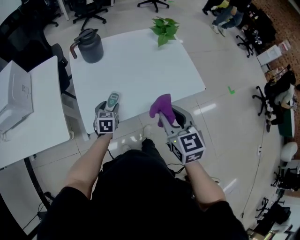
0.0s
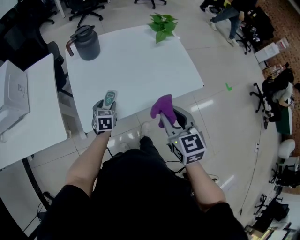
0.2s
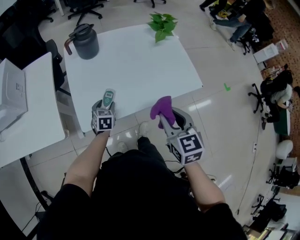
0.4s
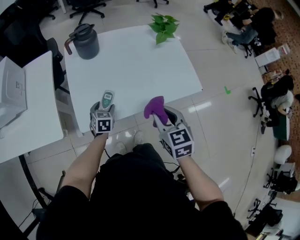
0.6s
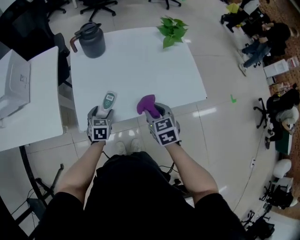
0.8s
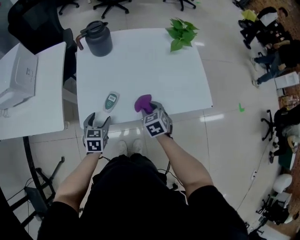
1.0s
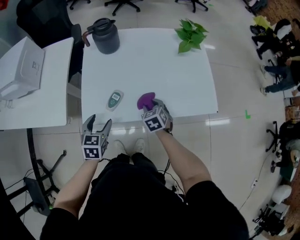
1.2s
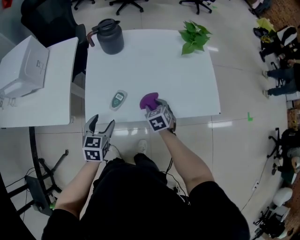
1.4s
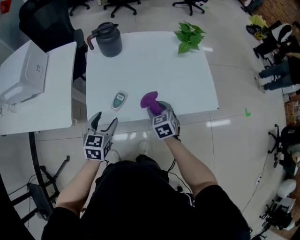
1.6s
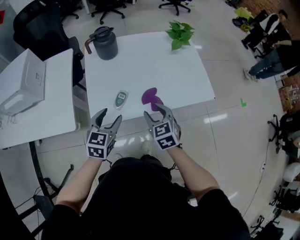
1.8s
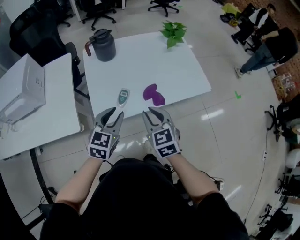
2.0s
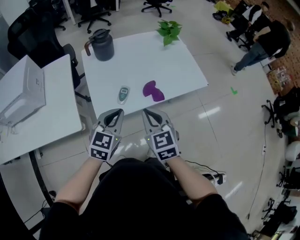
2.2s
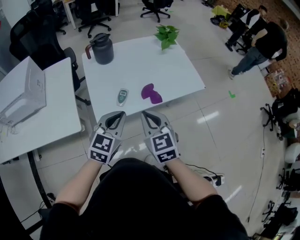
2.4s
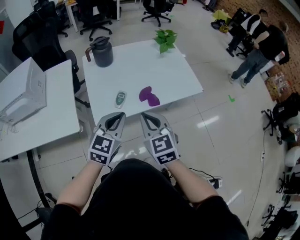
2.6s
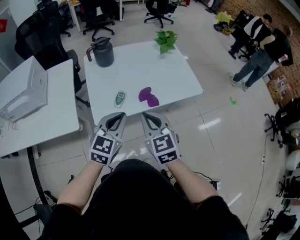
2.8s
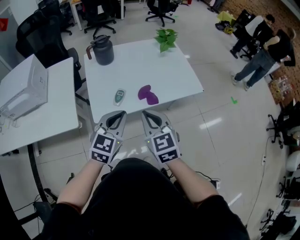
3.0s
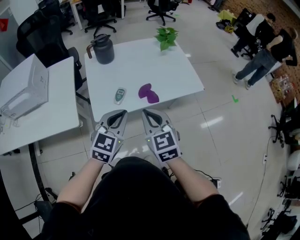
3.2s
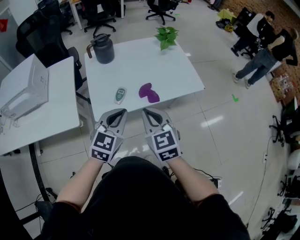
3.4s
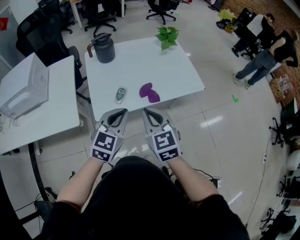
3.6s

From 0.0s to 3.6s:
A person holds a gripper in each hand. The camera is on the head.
From 0.0s to 1.8s: The right gripper shifts approximately 10 cm downward and to the left, and opens its fingers. The left gripper travels upward and backward by some 15 cm.
From 1.8s to 3.6s: The right gripper goes roughly 20 cm upward and backward, and closes up. The left gripper moves upward, backward and to the right, roughly 15 cm, turns by about 20 degrees, and closes.

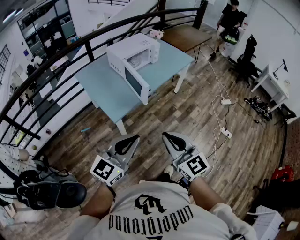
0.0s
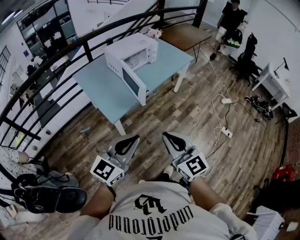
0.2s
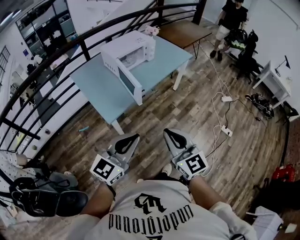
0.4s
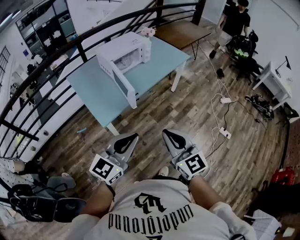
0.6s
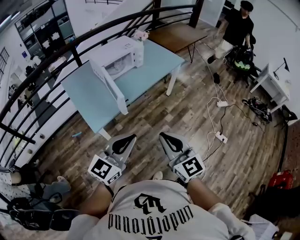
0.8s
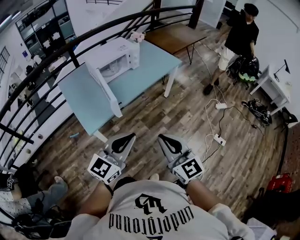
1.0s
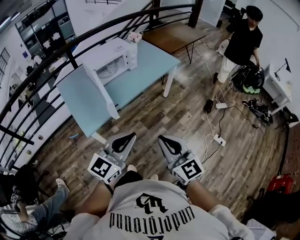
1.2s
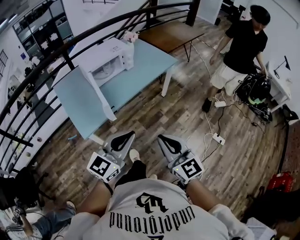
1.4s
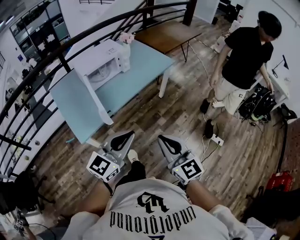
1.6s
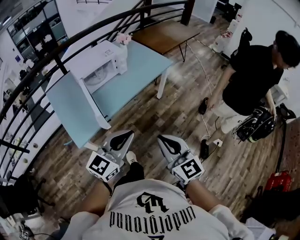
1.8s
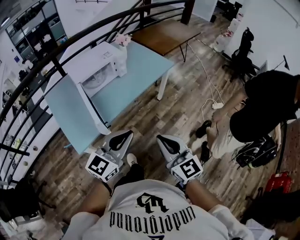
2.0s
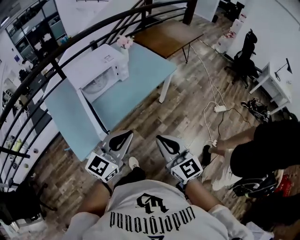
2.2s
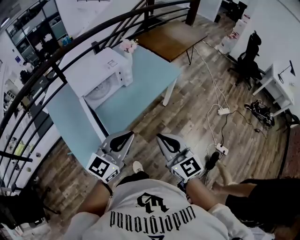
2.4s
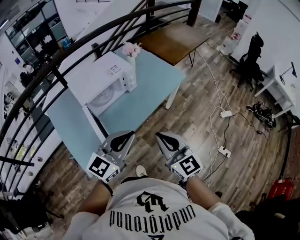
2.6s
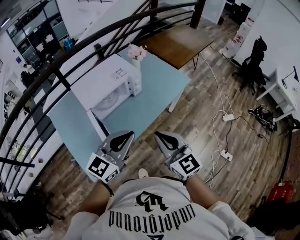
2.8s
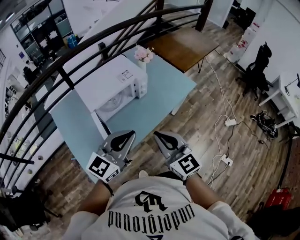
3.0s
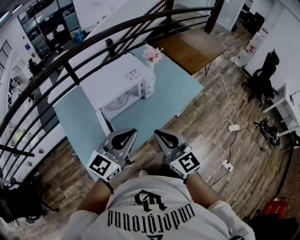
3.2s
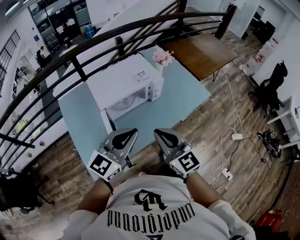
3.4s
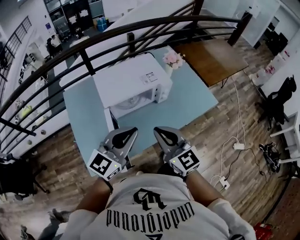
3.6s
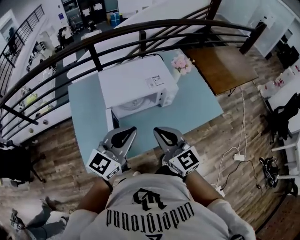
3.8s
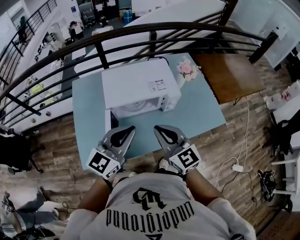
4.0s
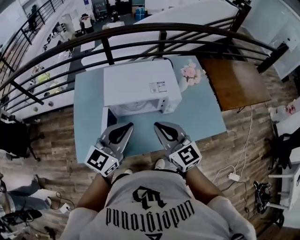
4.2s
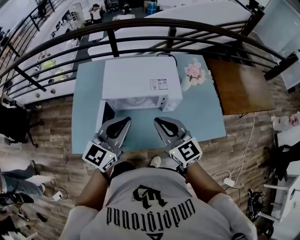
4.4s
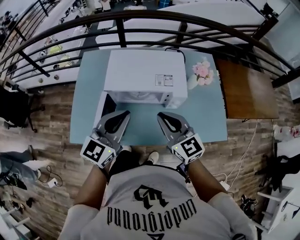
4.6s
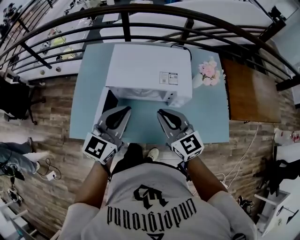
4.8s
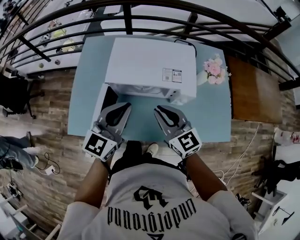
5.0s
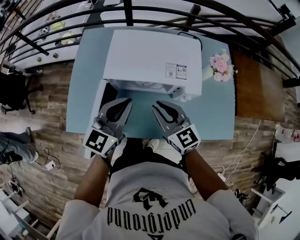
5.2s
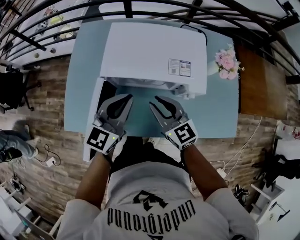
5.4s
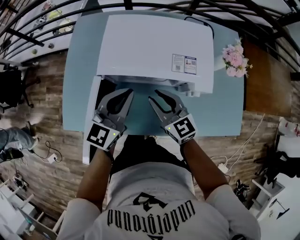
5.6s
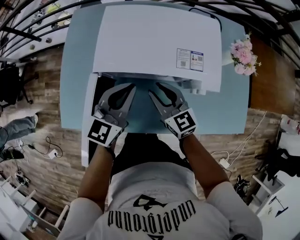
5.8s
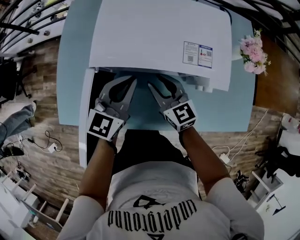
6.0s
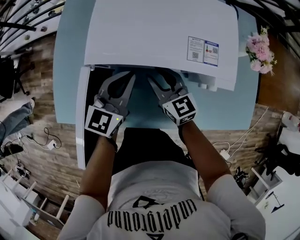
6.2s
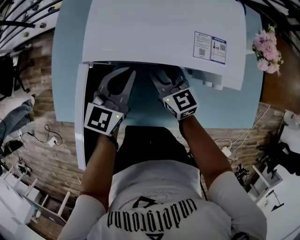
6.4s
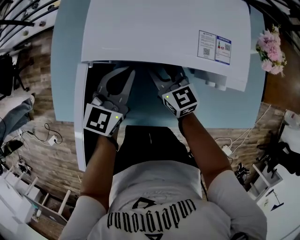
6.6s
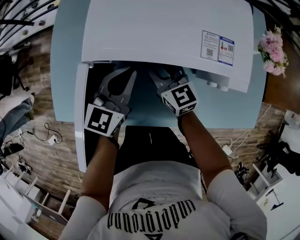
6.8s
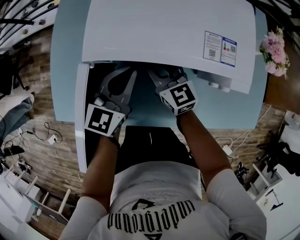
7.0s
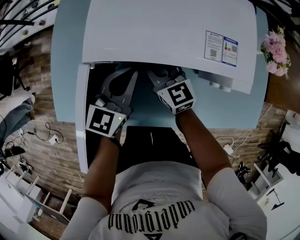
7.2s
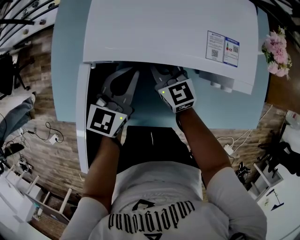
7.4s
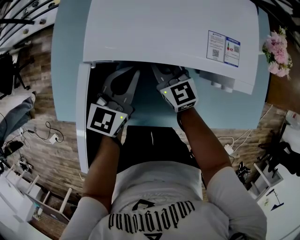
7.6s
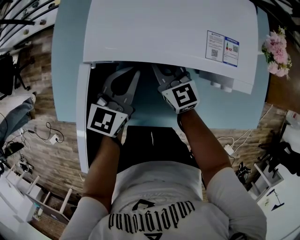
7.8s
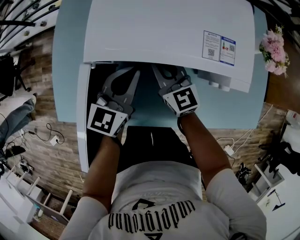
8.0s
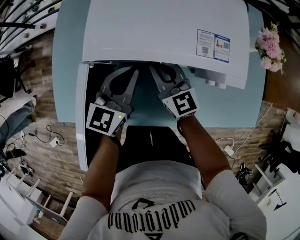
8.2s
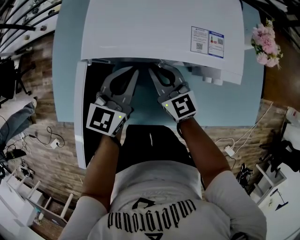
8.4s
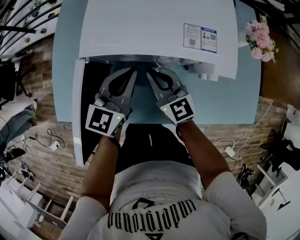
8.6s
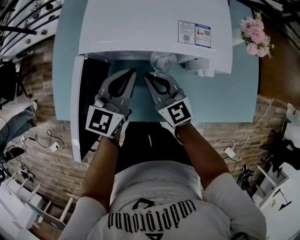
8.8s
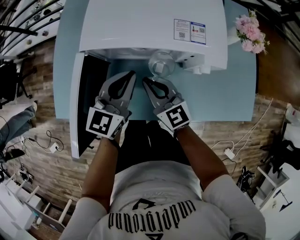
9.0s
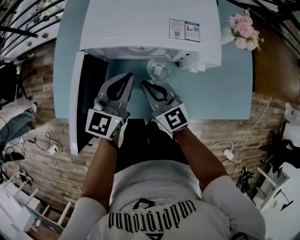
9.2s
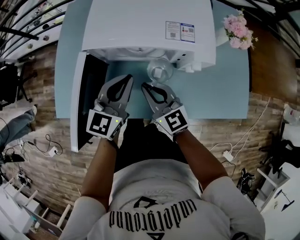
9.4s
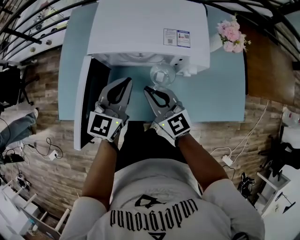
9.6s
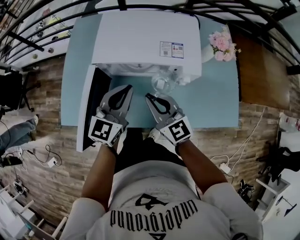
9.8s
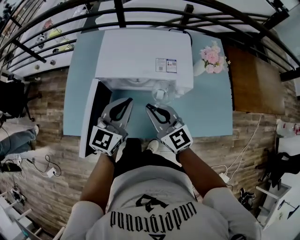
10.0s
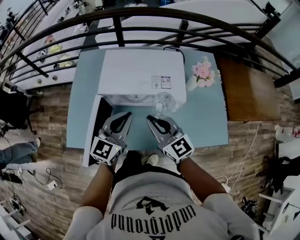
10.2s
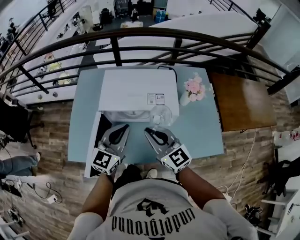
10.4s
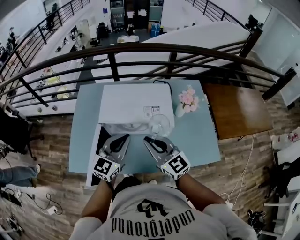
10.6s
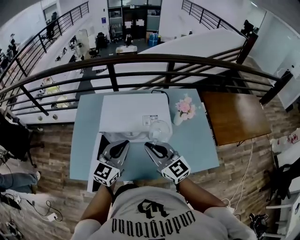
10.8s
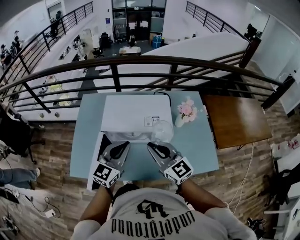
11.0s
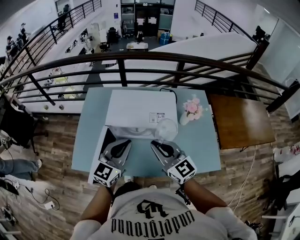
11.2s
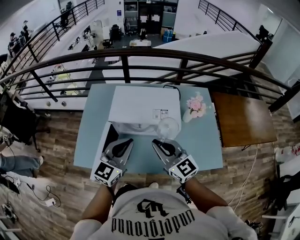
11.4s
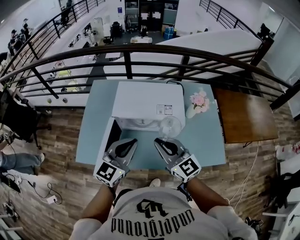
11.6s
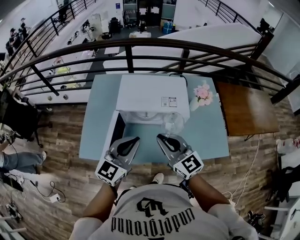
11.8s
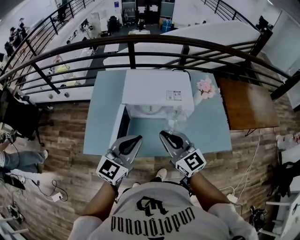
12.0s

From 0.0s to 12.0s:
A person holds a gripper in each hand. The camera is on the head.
From 0.0s to 1.6s: The two grippers go about 30 cm to the right and forward.
From 1.6s to 3.0s: Both grippers move forward and to the left, roughly 35 cm.
From 3.0s to 4.4s: The right gripper moves roughly 25 cm, and changes its angle by approximately 40 degrees. The left gripper shifts by roughly 15 cm, and swivels roughly 40 degrees.
From 4.4s to 6.0s: Both grippers travel together downward and forward, roughly 30 cm. The right gripper opens.
From 6.0s to 7.6s: The right gripper travels forward by roughly 5 cm, and closes. The left gripper is displaced downward by roughly 5 cm.
From 7.6s to 9.0s: The right gripper travels backward by roughly 10 cm; the left gripper goes about 5 cm backward.
From 9.0s to 10.4s: Both grippers travel together upward, roughly 20 cm.
From 10.4s to 12.0s: Both grippers move backward, upward and to the left, about 15 cm.

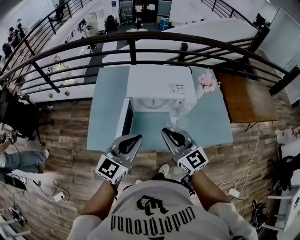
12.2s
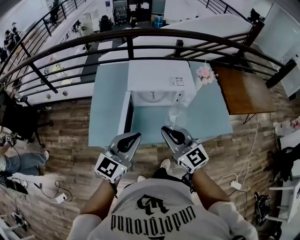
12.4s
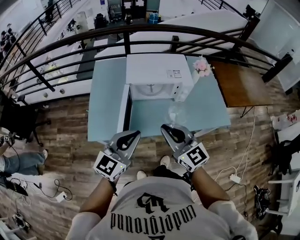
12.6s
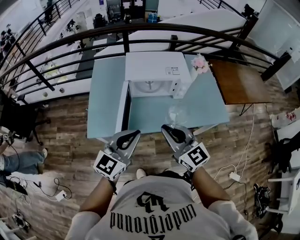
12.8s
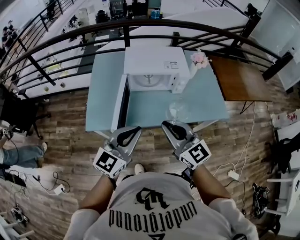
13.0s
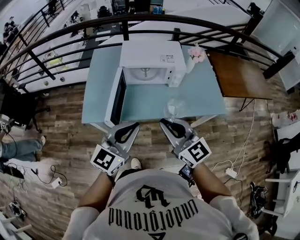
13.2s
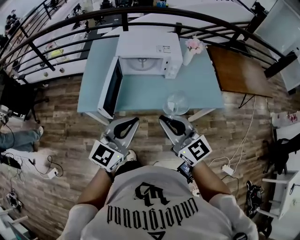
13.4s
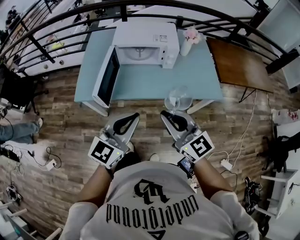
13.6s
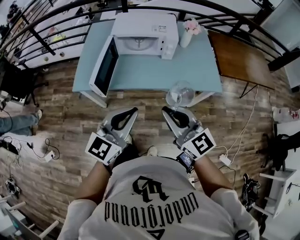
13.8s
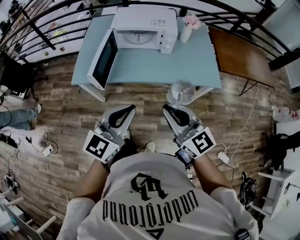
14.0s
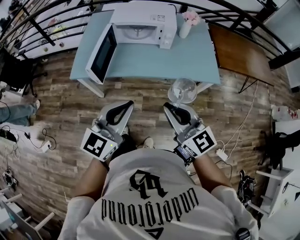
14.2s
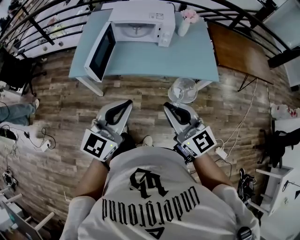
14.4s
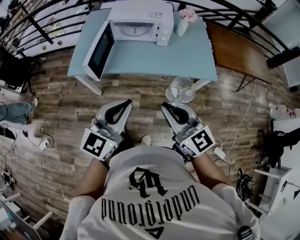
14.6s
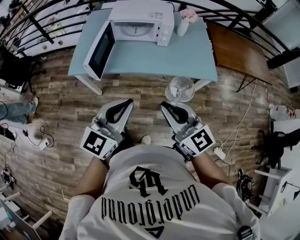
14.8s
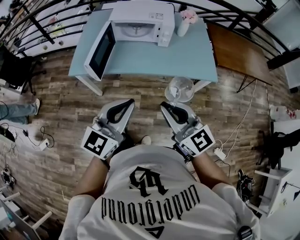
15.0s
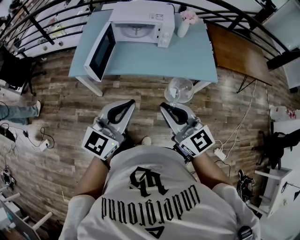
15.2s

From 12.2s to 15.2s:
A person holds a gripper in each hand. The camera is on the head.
From 12.2s to 13.8s: Both grippers travel together backward and to the right, roughly 30 cm.
From 13.8s to 15.2s: Both grippers move backward, some 5 cm.

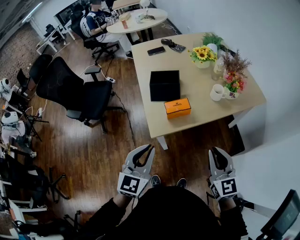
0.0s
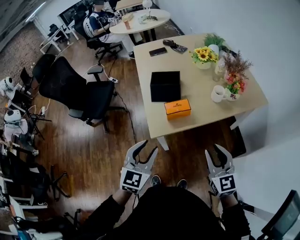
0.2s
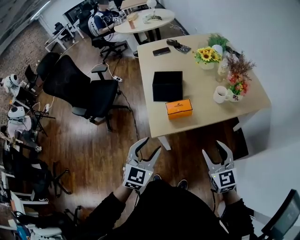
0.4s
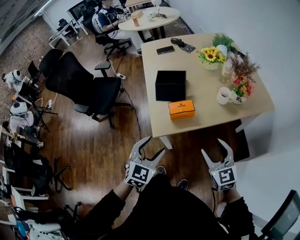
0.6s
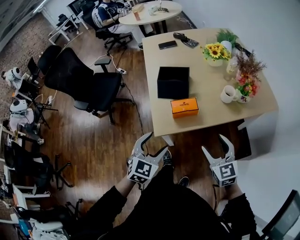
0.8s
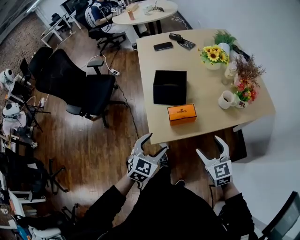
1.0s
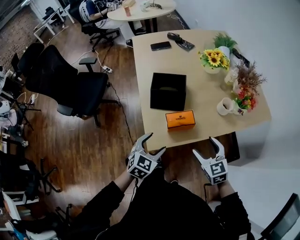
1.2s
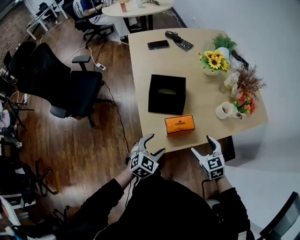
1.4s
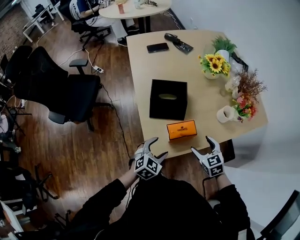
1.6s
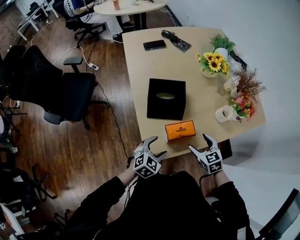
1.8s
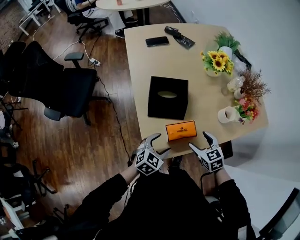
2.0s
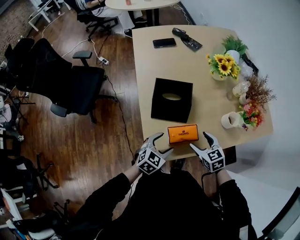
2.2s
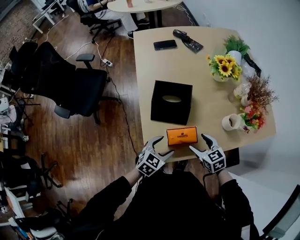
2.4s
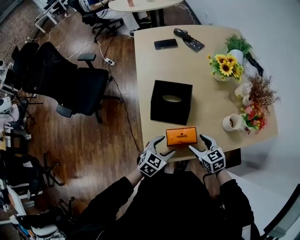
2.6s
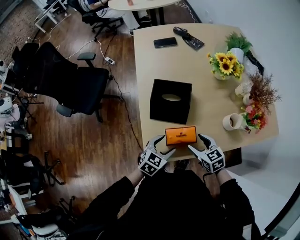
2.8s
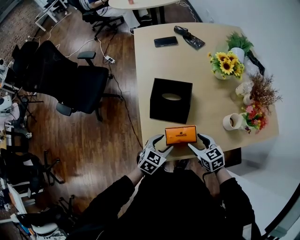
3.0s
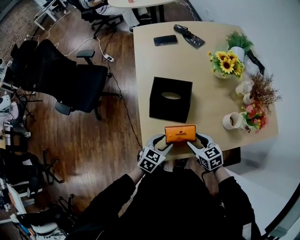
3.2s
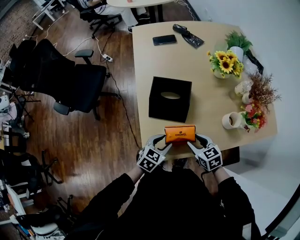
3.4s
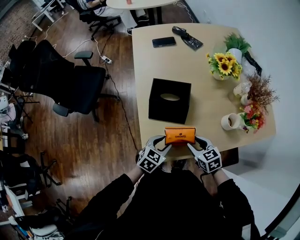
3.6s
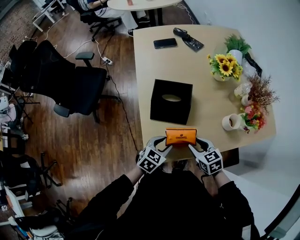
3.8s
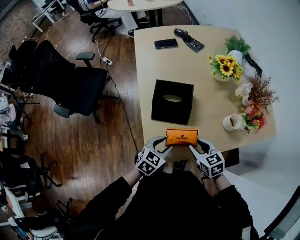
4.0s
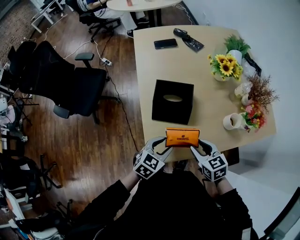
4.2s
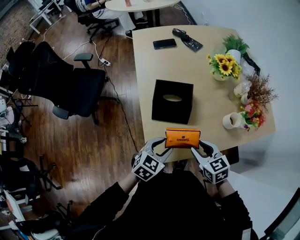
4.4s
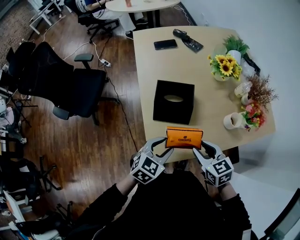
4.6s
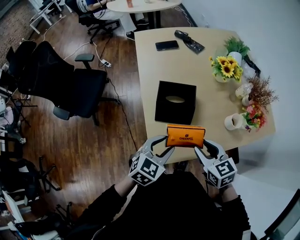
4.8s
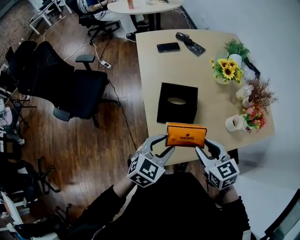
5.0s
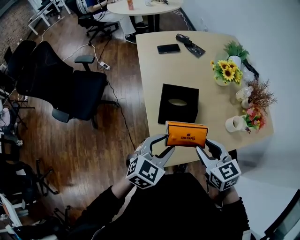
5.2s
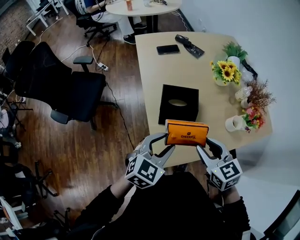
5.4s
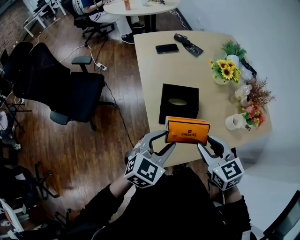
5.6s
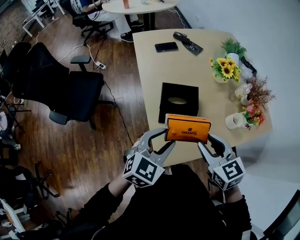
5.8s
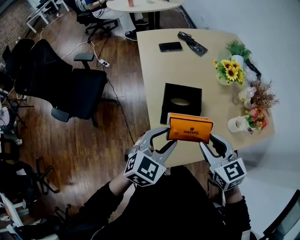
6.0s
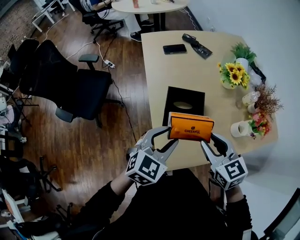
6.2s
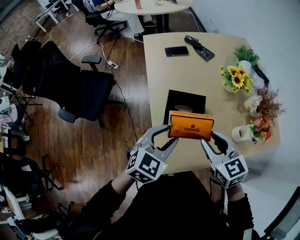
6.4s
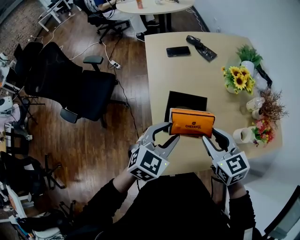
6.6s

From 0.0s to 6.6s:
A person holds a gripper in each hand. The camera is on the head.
From 0.0s to 1.6s: The right gripper is displaced forward and downward by some 30 cm, tips its fingers downward by about 30 degrees, and opens its fingers. The left gripper goes roughly 30 cm downward and forward, swivels approximately 30 degrees, and opens.
From 1.6s to 3.2s: Both grippers move forward, roughly 5 cm. The right gripper closes up. The left gripper rotates about 20 degrees, and closes.
From 3.2s to 5.0s: Both grippers travel together upward, some 15 cm.
From 5.0s to 6.6s: Both grippers move forward, approximately 10 cm.
